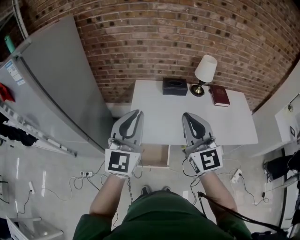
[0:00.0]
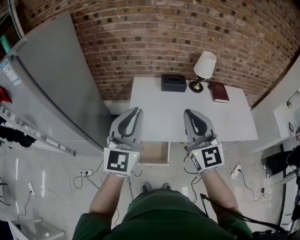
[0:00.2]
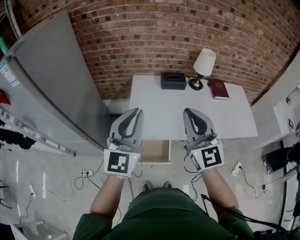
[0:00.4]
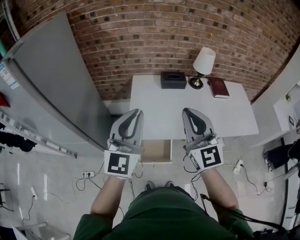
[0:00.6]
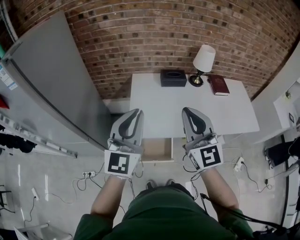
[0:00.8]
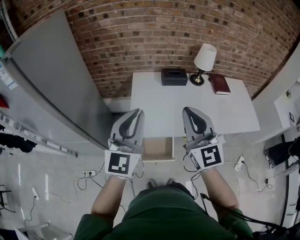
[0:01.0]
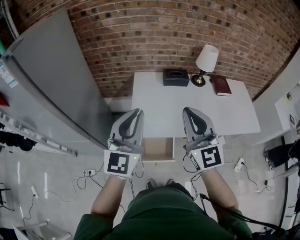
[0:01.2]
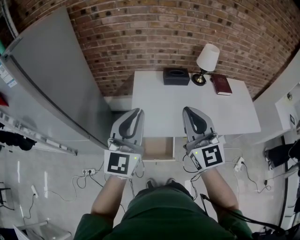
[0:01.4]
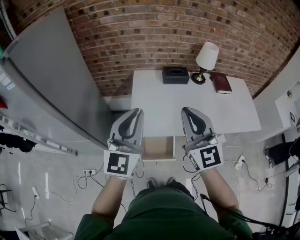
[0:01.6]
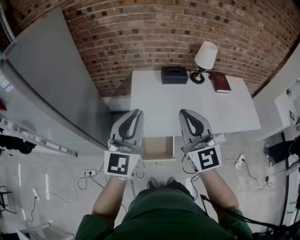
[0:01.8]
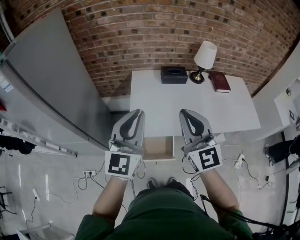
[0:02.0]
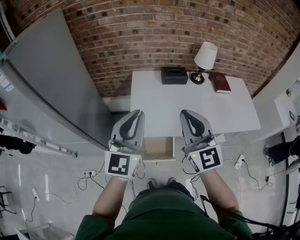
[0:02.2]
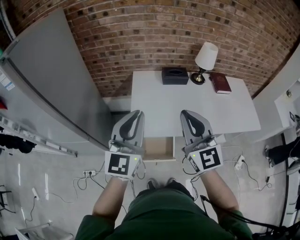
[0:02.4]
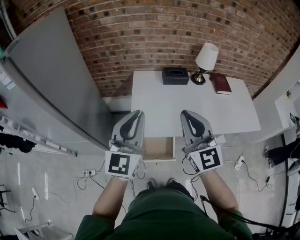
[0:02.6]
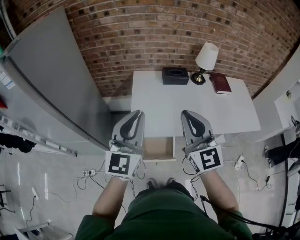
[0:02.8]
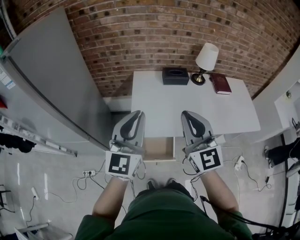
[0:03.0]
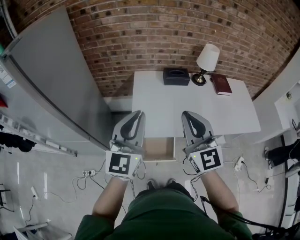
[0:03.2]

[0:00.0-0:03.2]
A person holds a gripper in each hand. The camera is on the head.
0:00.0 to 0:01.6: The right gripper ends up approximately 5 cm from where it was.
0:01.6 to 0:03.2: Neither gripper changes place.

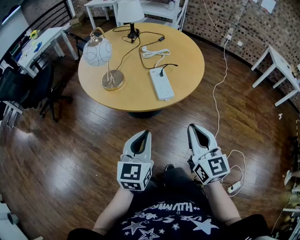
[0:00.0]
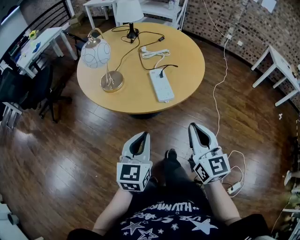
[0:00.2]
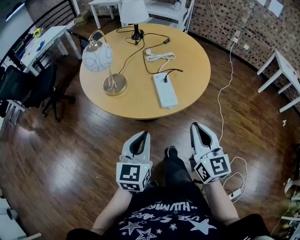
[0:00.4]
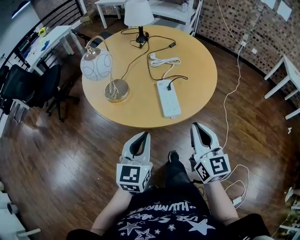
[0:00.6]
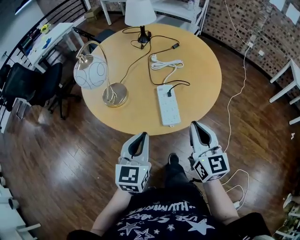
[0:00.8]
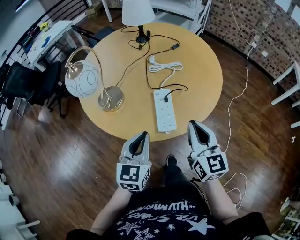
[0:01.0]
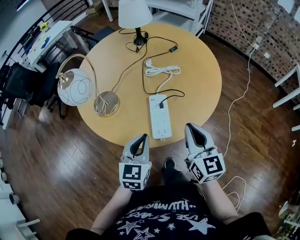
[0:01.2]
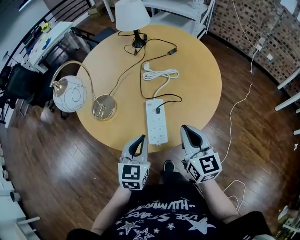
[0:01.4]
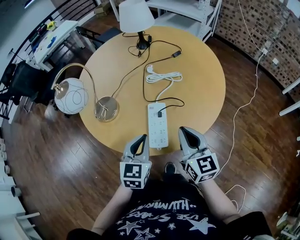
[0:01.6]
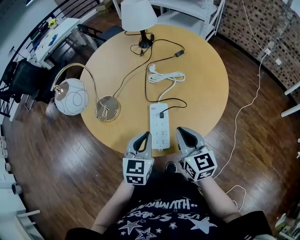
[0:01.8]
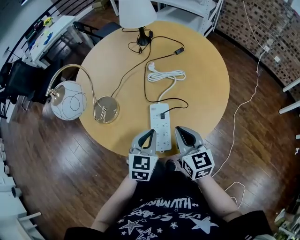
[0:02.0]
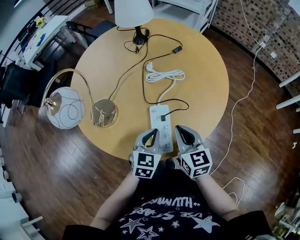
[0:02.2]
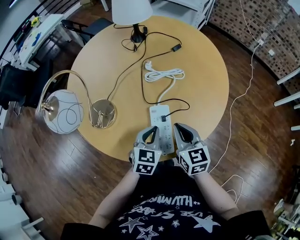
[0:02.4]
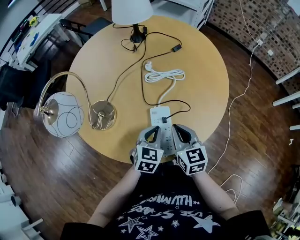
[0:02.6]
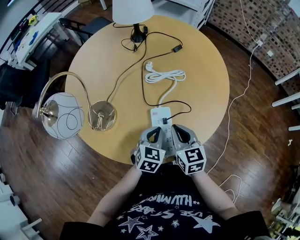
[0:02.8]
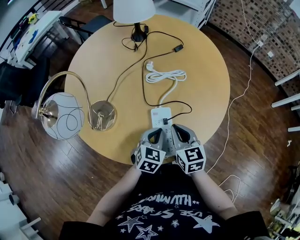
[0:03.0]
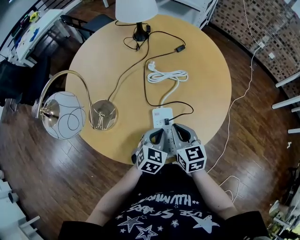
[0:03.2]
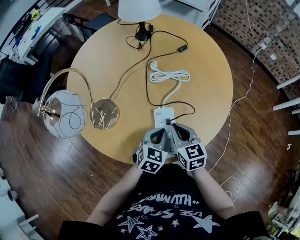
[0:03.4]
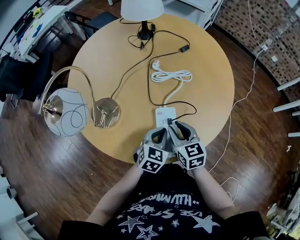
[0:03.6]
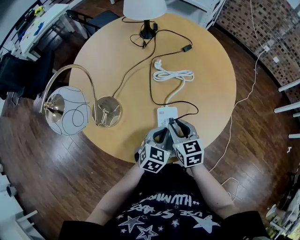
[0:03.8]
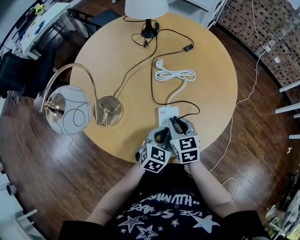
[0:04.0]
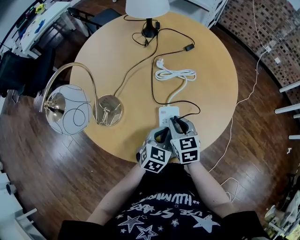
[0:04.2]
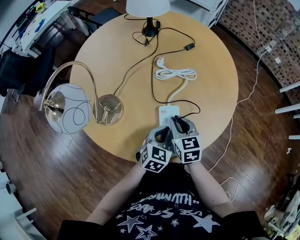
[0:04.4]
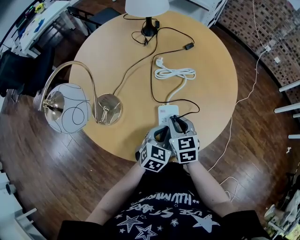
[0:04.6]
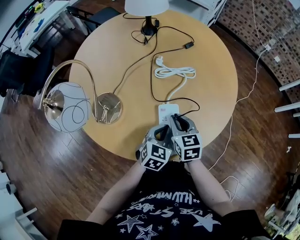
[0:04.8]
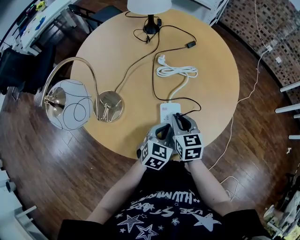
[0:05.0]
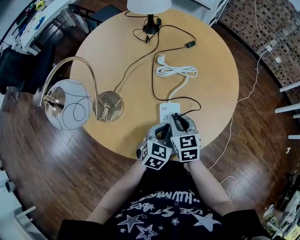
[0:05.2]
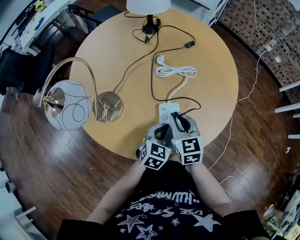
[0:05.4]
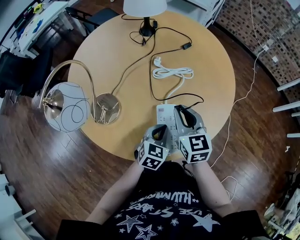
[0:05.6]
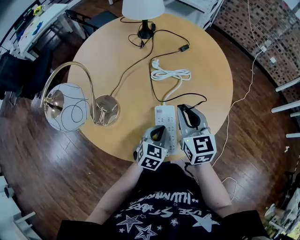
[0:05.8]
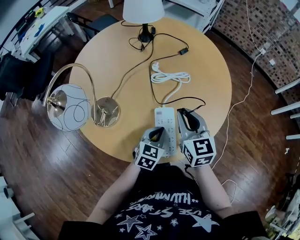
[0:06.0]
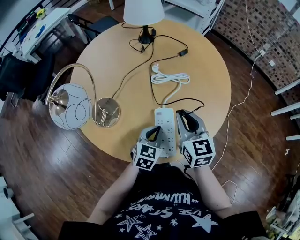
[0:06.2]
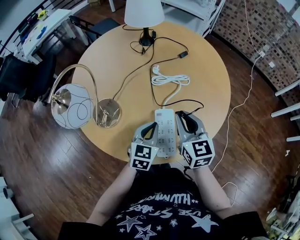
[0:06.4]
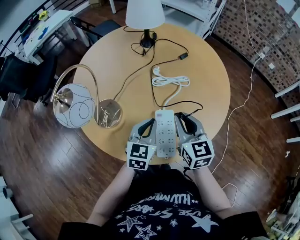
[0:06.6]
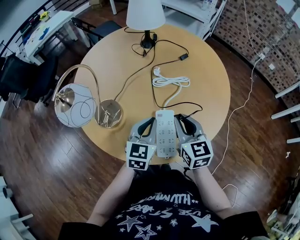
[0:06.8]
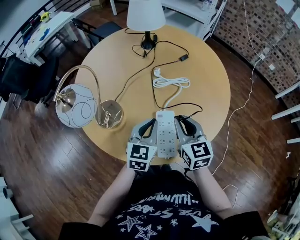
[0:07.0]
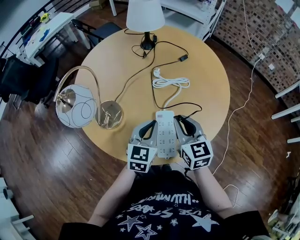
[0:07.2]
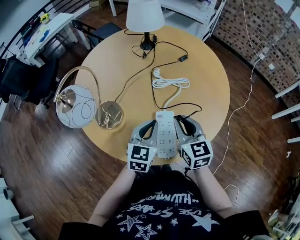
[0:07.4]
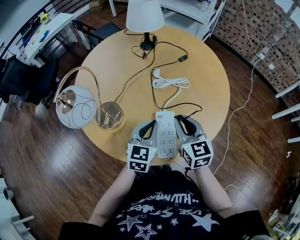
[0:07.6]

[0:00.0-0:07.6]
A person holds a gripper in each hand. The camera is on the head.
0:00.0 to 0:01.6: Both grippers move forward, some 25 cm.
0:01.6 to 0:03.0: The left gripper goes roughly 15 cm downward and forward, and turns by approximately 20 degrees. The right gripper is displaced downward, forward and to the left by about 15 cm.
0:03.0 to 0:04.6: The grippers stay close to where they were, moving slightly.
0:04.6 to 0:06.0: The right gripper goes approximately 10 cm upward.
0:06.0 to 0:07.6: The left gripper shifts approximately 10 cm upward and to the left.

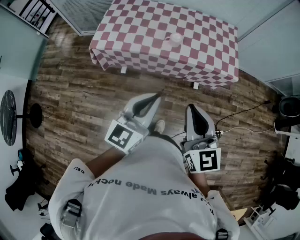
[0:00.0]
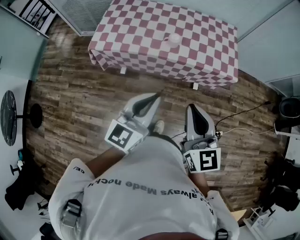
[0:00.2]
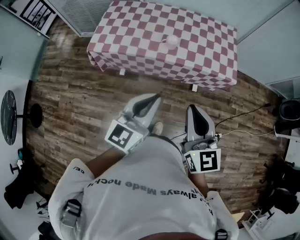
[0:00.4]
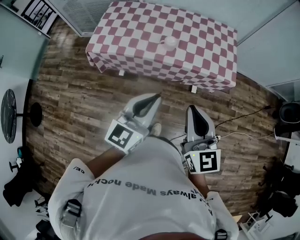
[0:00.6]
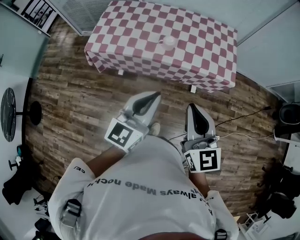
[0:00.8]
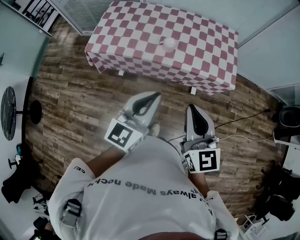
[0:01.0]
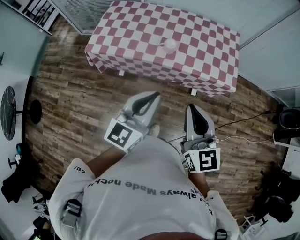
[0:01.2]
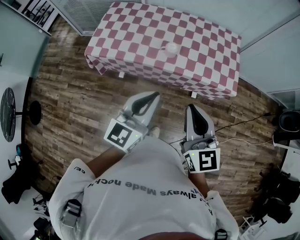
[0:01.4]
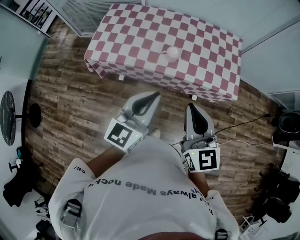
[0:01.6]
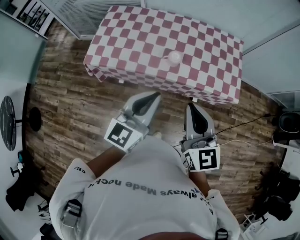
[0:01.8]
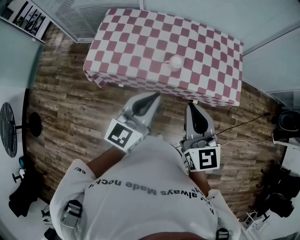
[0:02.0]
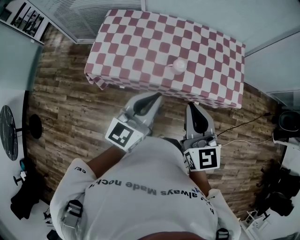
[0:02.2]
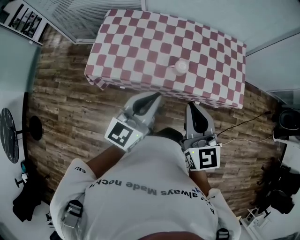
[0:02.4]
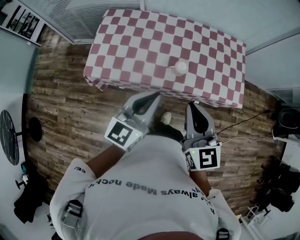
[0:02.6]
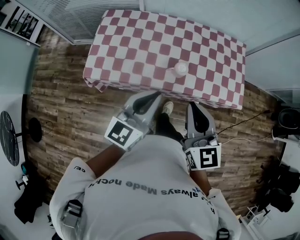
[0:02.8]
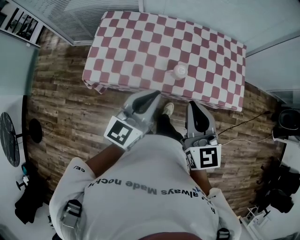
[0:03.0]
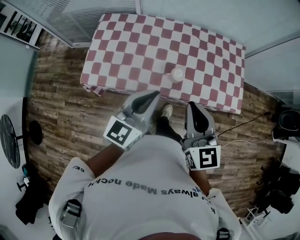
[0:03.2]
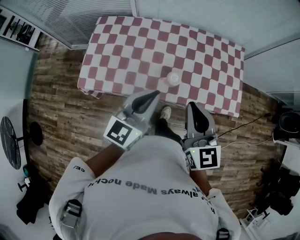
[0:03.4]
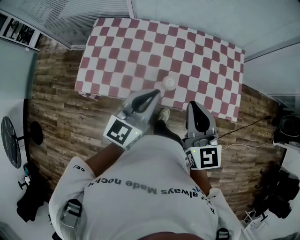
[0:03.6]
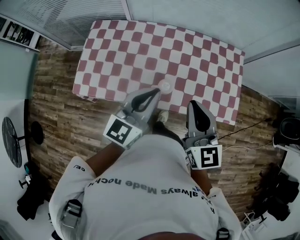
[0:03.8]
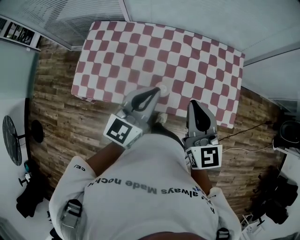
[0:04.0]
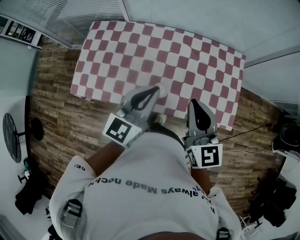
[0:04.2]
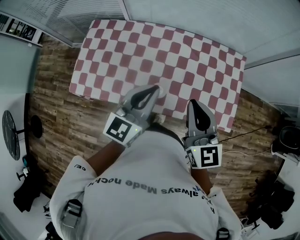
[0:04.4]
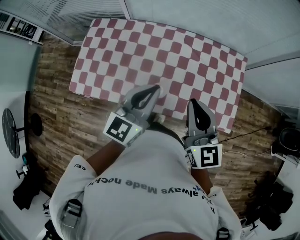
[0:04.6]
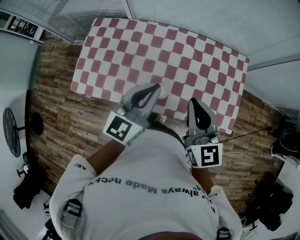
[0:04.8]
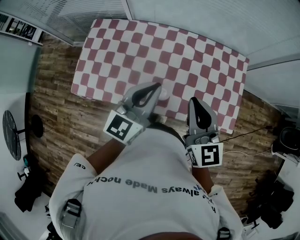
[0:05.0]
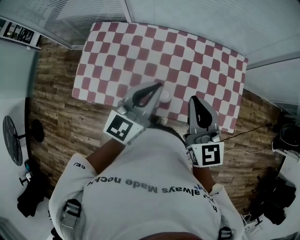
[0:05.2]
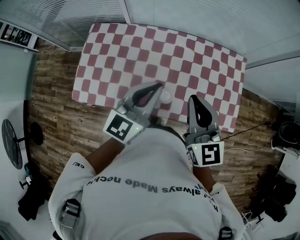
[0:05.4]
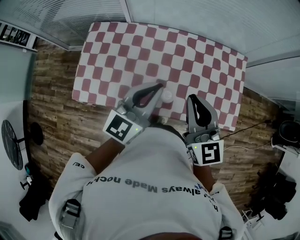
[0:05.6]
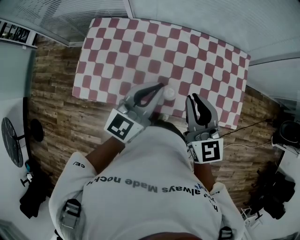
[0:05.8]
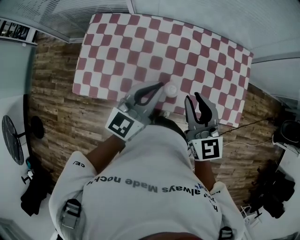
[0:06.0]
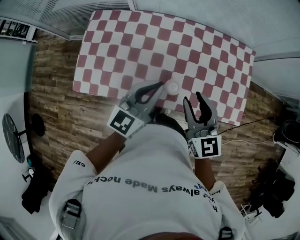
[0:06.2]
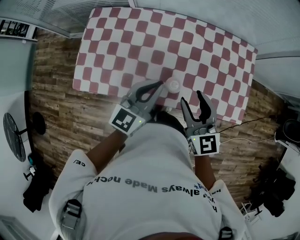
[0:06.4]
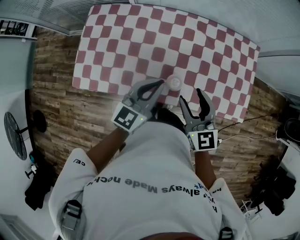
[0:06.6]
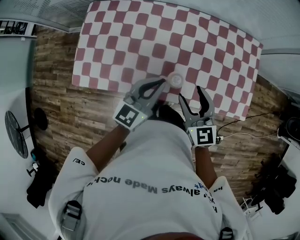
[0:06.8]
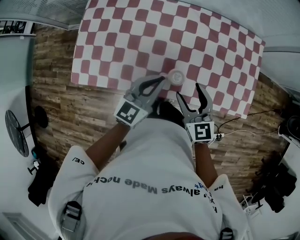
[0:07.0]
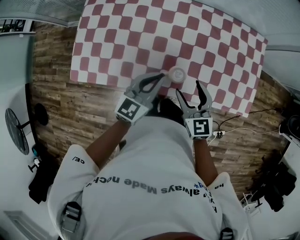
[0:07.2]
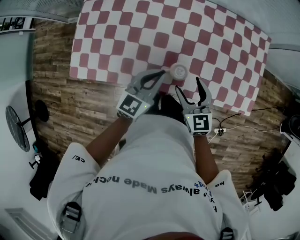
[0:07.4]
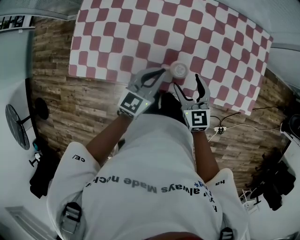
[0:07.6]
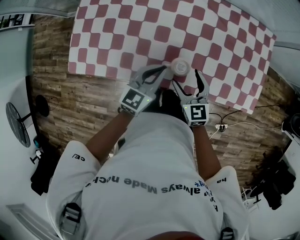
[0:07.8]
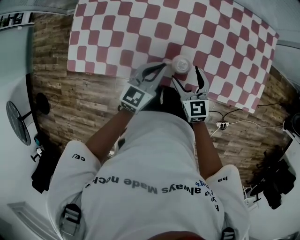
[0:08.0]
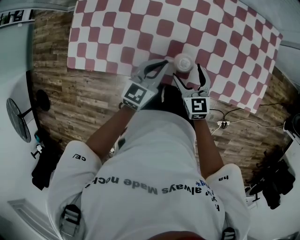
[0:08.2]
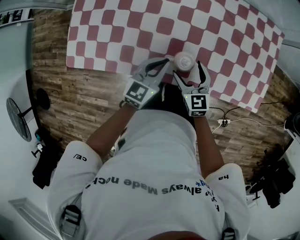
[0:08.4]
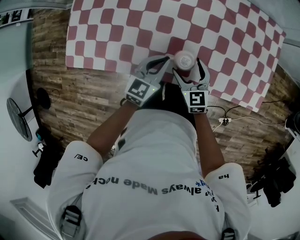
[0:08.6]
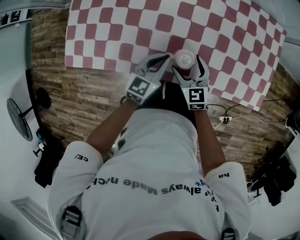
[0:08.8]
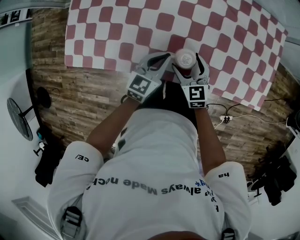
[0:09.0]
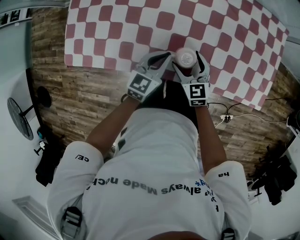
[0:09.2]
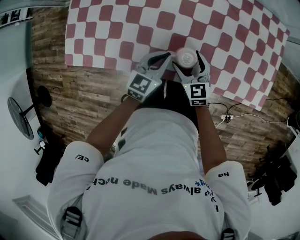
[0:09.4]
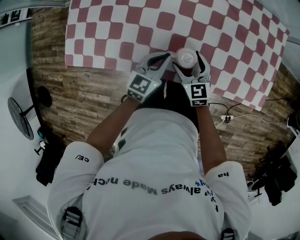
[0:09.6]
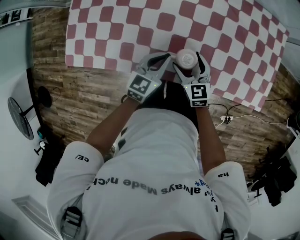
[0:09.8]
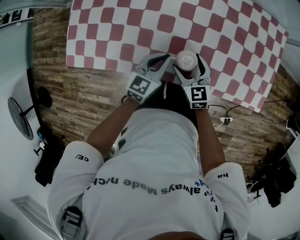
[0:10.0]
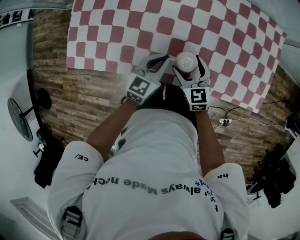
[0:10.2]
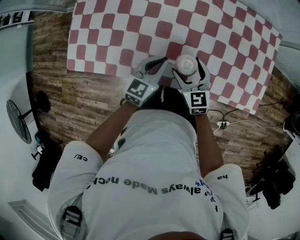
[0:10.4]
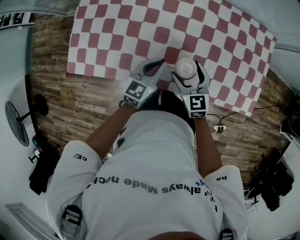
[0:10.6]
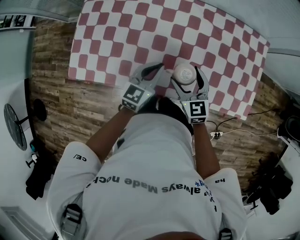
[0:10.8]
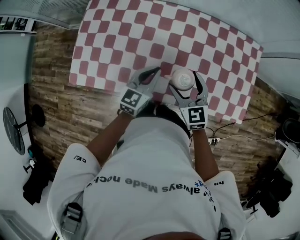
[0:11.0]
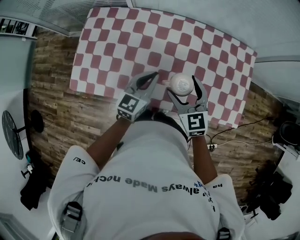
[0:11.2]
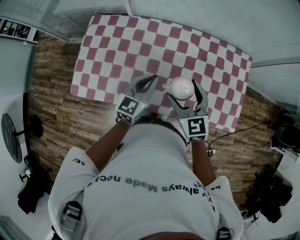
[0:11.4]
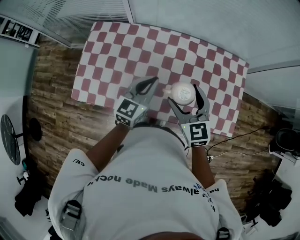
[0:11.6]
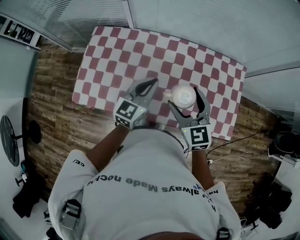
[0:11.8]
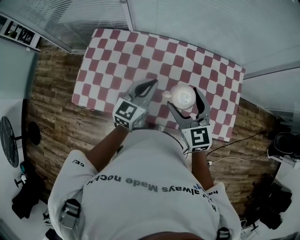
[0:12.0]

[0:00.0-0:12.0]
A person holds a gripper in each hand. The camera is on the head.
0:00.0 to 0:01.6: The grippers both shift forward by roughly 15 cm.
0:01.6 to 0:03.0: The two grippers go approximately 20 cm forward and to the left.
0:03.0 to 0:04.4: The two grippers go some 25 cm forward and to the right.
0:04.4 to 0:06.0: The grippers both shift to the left by roughly 10 cm.
0:06.0 to 0:07.6: Both grippers move downward, approximately 20 cm. The right gripper opens its fingers.
0:07.6 to 0:09.0: The two grippers go some 10 cm downward.
0:09.0 to 0:10.4: The grippers stay close to where they were, moving slightly.
0:10.4 to 0:12.0: Both grippers move upward, about 25 cm.

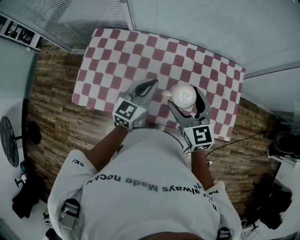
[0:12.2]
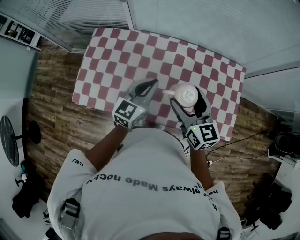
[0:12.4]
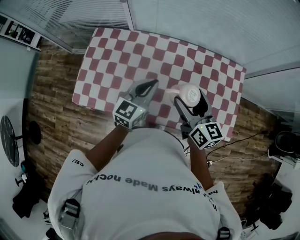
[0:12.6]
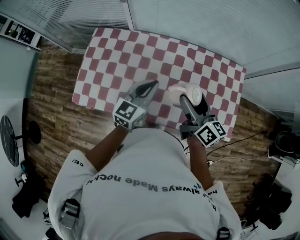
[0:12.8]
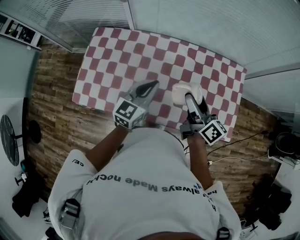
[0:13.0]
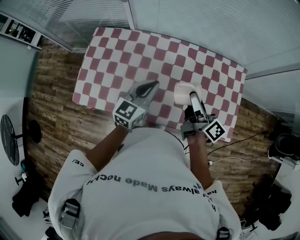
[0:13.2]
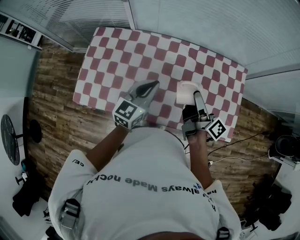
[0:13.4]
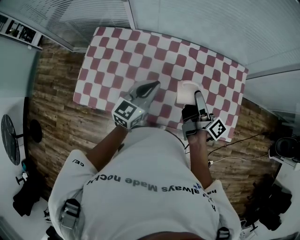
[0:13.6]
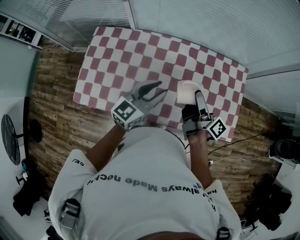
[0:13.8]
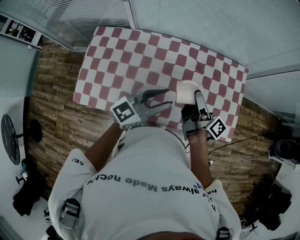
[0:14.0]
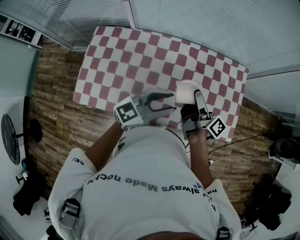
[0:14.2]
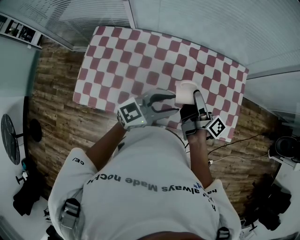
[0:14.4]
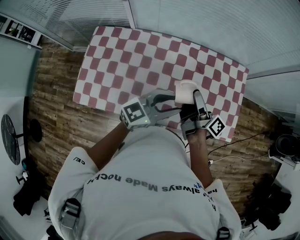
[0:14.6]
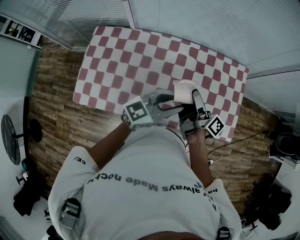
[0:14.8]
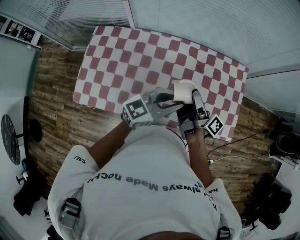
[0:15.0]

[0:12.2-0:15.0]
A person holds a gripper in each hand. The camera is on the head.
0:12.2 to 0:13.6: The right gripper goes roughly 5 cm to the right, and twists approximately 80 degrees clockwise, seen from behind.
0:13.6 to 0:15.0: The left gripper shifts about 10 cm to the right, and changes its angle by about 30 degrees.
